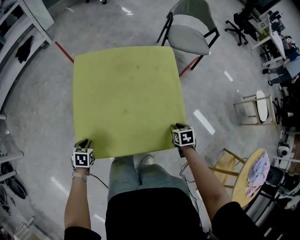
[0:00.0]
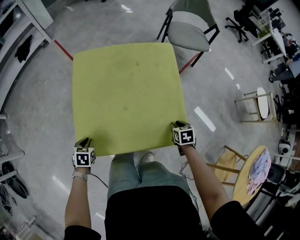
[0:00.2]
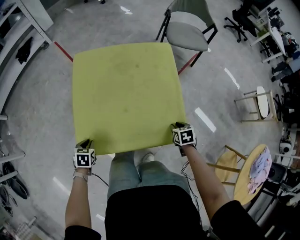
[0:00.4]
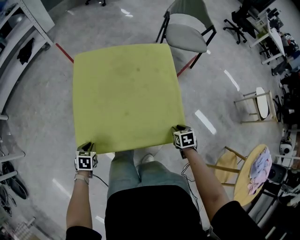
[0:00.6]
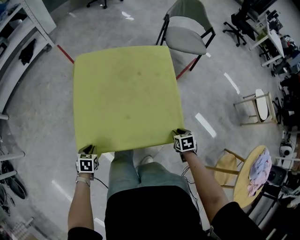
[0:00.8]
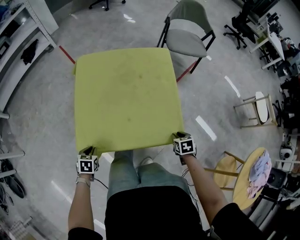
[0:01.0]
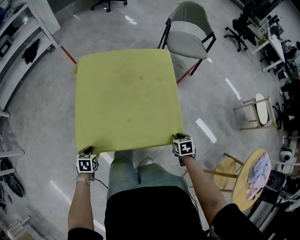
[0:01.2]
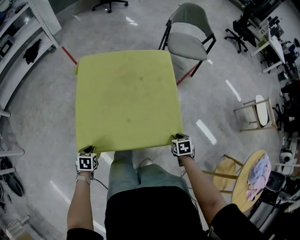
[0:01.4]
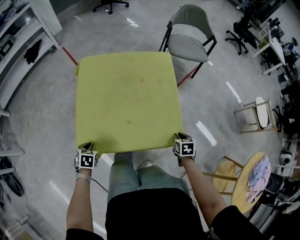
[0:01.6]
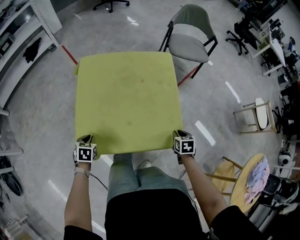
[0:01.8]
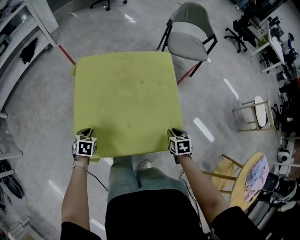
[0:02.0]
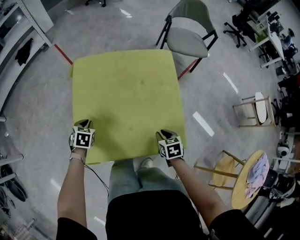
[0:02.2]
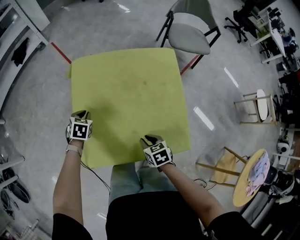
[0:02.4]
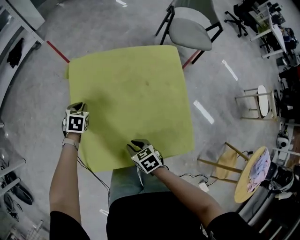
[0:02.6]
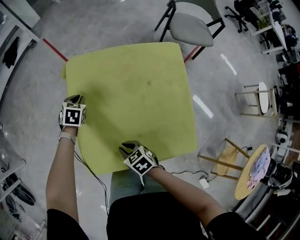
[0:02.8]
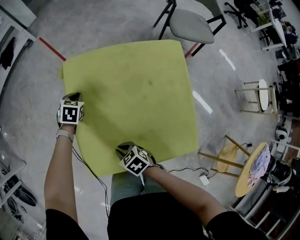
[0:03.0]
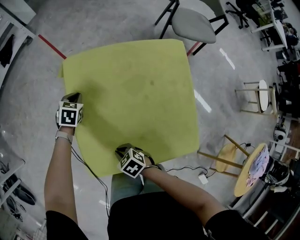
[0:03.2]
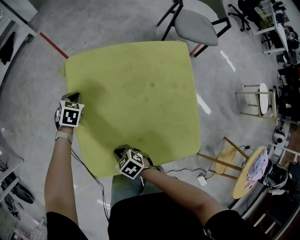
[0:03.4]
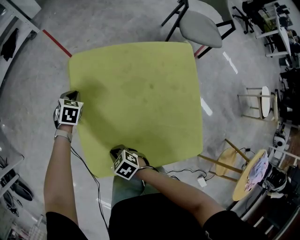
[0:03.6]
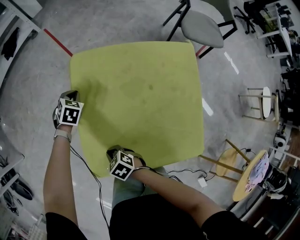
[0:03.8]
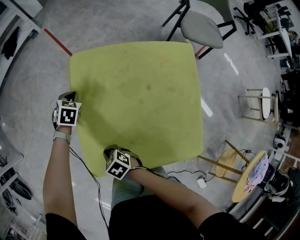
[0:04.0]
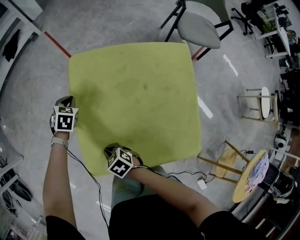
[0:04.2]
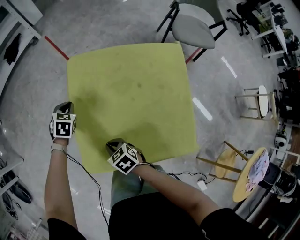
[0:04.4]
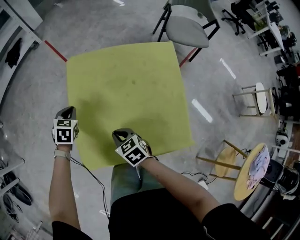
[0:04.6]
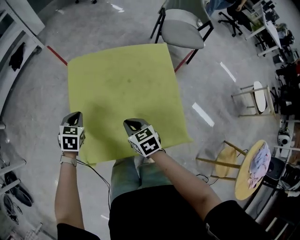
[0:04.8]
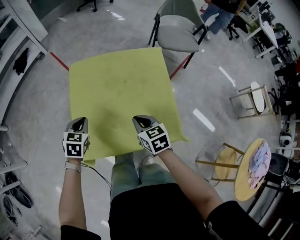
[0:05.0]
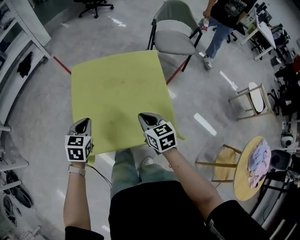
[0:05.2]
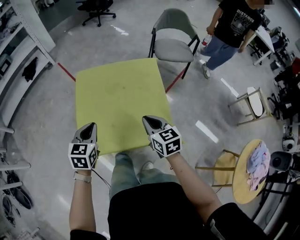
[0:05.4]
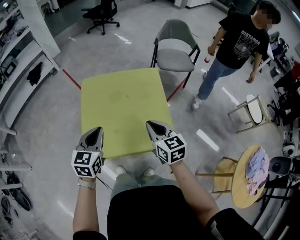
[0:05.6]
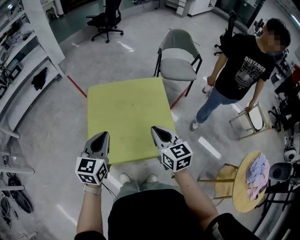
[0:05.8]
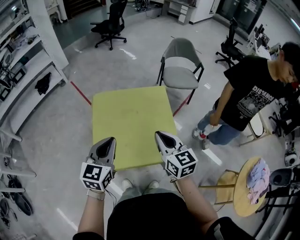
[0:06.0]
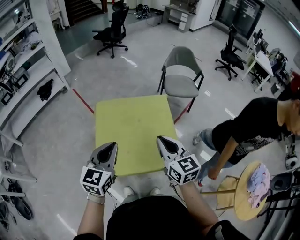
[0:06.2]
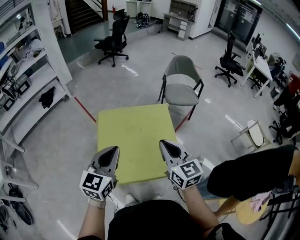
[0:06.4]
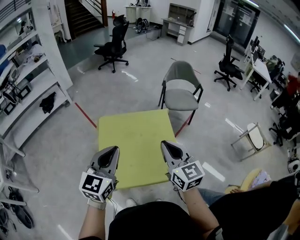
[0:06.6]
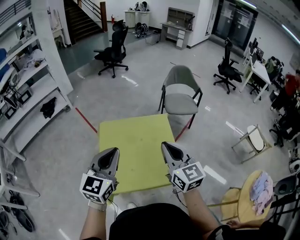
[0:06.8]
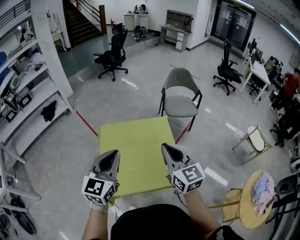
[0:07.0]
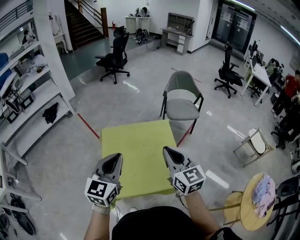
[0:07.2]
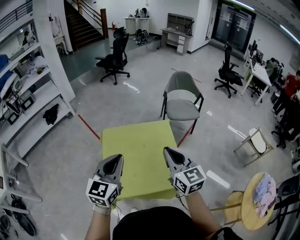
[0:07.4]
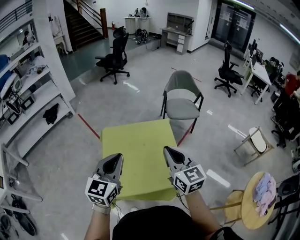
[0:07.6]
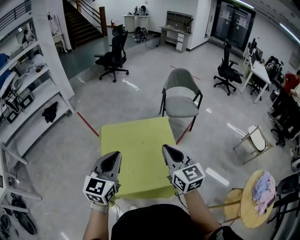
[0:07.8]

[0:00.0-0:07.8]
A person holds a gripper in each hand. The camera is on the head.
0:00.0 to 0:01.6: The left gripper moves about 5 cm; the right gripper is displaced backward by about 5 cm.
0:01.6 to 0:03.2: The right gripper ends up about 40 cm from where it was, and changes its angle by approximately 50 degrees. The left gripper ends up about 35 cm from where it was.
0:03.2 to 0:04.6: The right gripper shifts roughly 10 cm to the right and upward, and turns by roughly 20 degrees; the left gripper heads backward, upward and to the left, covering some 10 cm.
0:04.6 to 0:06.2: The left gripper is displaced upward, backward and to the right by some 40 cm, and tilts its fingers some 40 degrees upward; the right gripper is displaced upward and to the right by about 40 cm, and tilts its fingers some 30 degrees upward.
0:06.2 to 0:07.8: Both grippers move upward, approximately 5 cm.

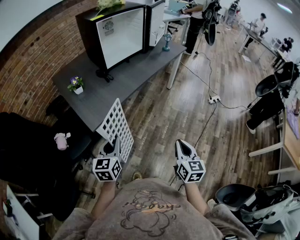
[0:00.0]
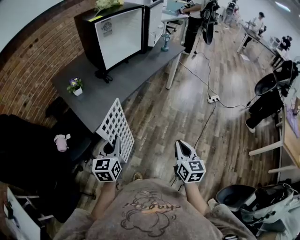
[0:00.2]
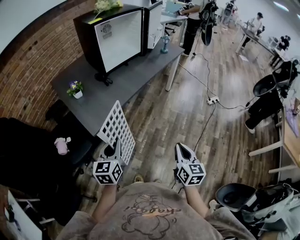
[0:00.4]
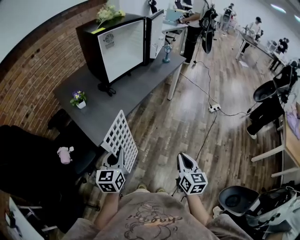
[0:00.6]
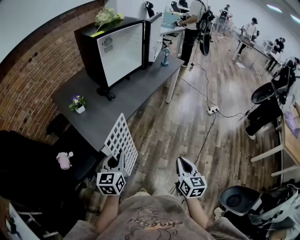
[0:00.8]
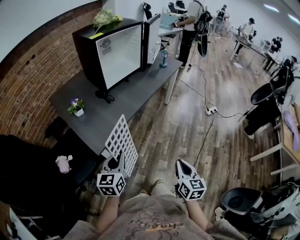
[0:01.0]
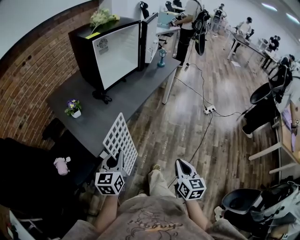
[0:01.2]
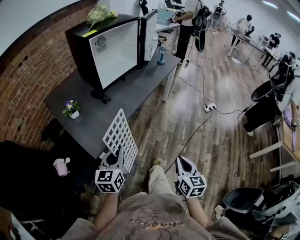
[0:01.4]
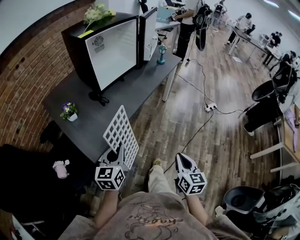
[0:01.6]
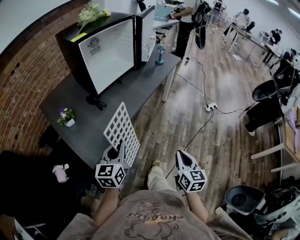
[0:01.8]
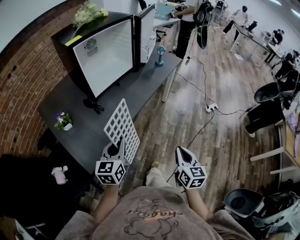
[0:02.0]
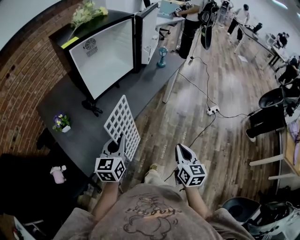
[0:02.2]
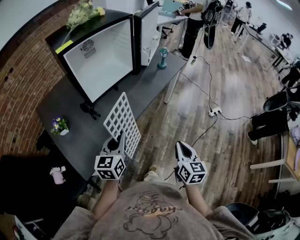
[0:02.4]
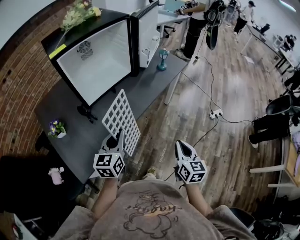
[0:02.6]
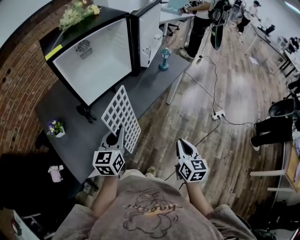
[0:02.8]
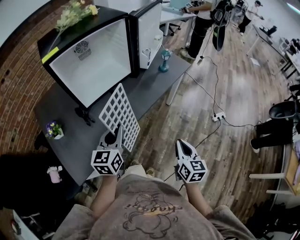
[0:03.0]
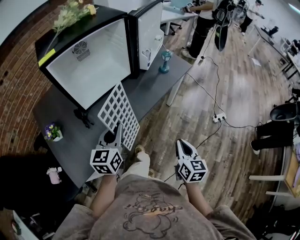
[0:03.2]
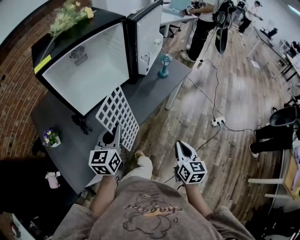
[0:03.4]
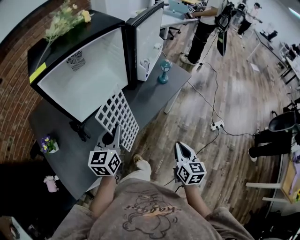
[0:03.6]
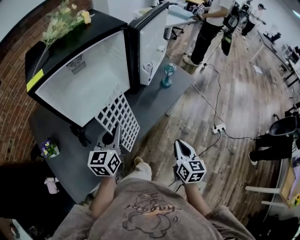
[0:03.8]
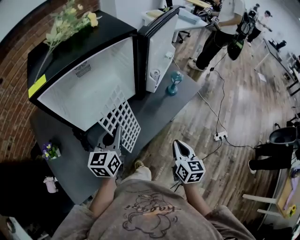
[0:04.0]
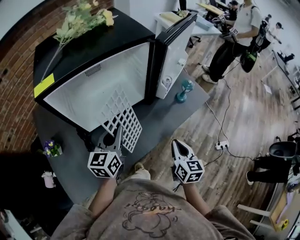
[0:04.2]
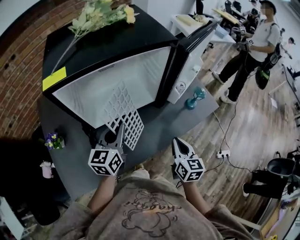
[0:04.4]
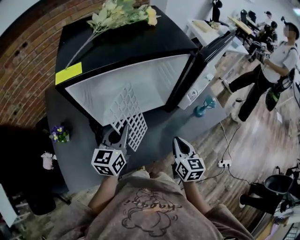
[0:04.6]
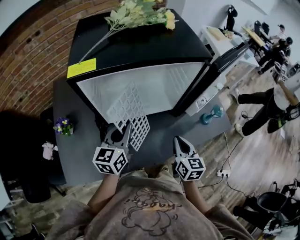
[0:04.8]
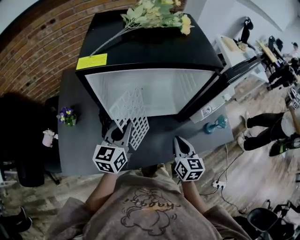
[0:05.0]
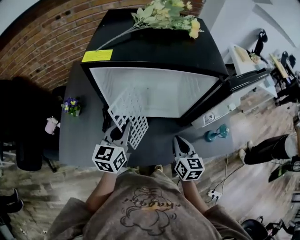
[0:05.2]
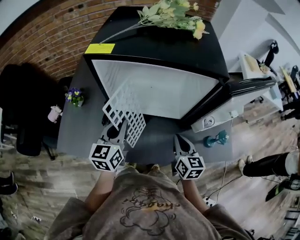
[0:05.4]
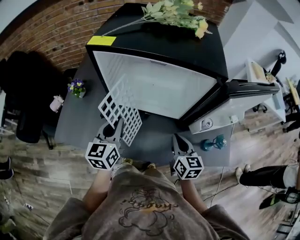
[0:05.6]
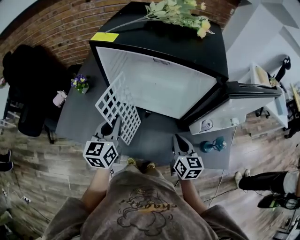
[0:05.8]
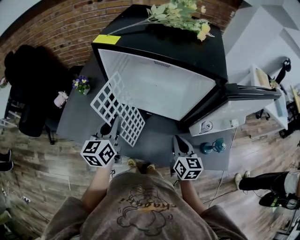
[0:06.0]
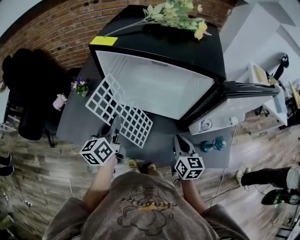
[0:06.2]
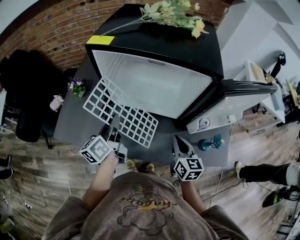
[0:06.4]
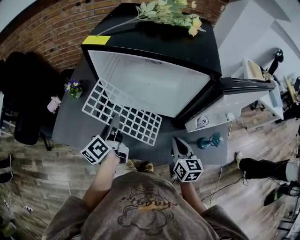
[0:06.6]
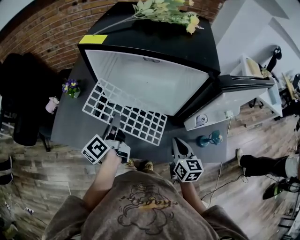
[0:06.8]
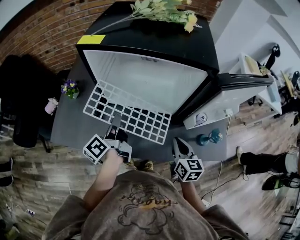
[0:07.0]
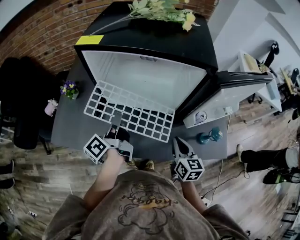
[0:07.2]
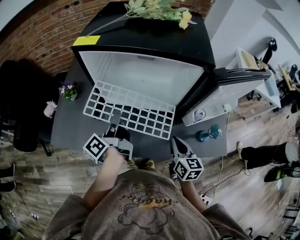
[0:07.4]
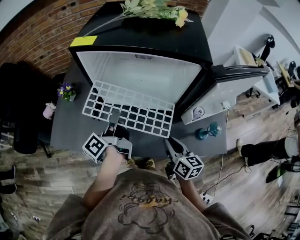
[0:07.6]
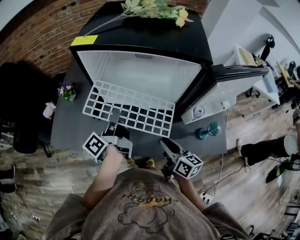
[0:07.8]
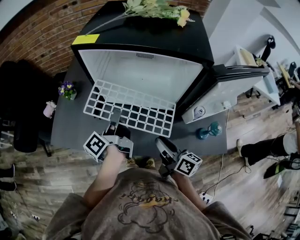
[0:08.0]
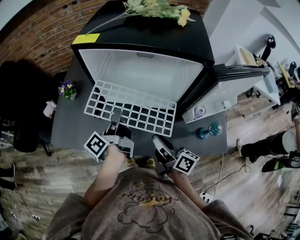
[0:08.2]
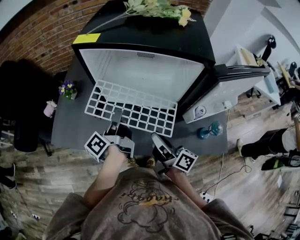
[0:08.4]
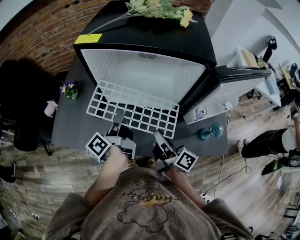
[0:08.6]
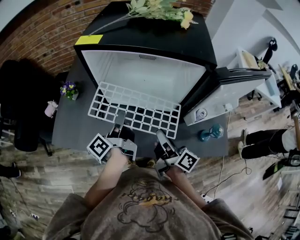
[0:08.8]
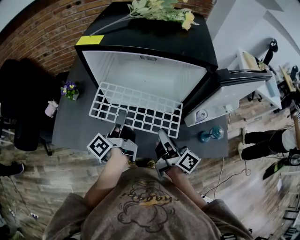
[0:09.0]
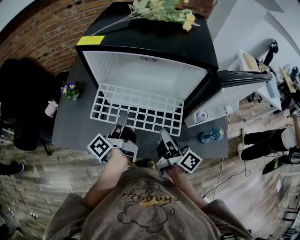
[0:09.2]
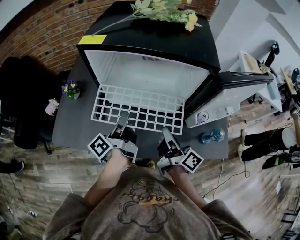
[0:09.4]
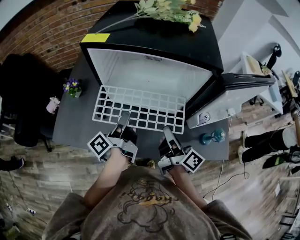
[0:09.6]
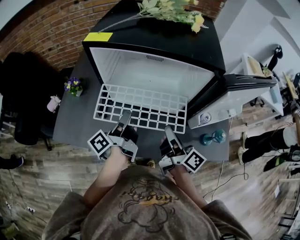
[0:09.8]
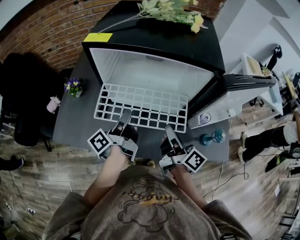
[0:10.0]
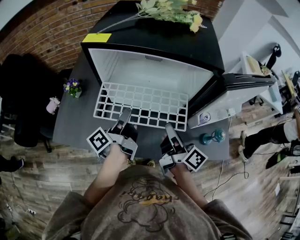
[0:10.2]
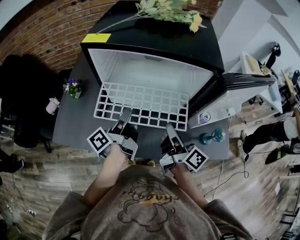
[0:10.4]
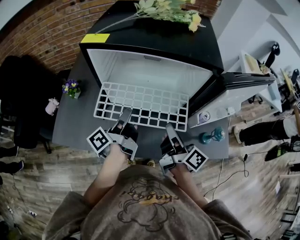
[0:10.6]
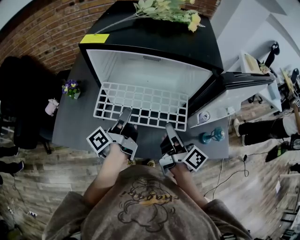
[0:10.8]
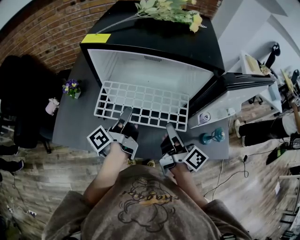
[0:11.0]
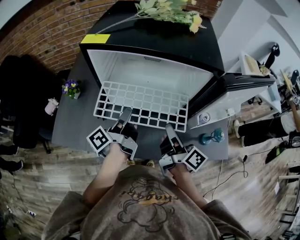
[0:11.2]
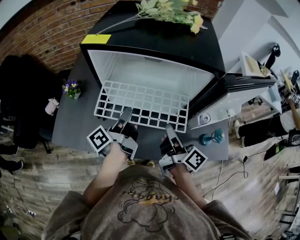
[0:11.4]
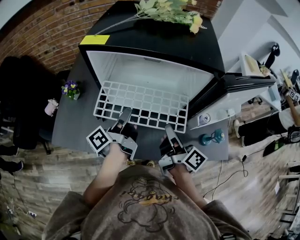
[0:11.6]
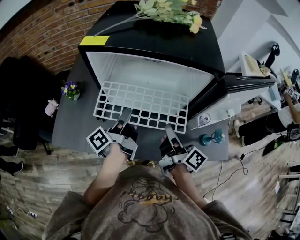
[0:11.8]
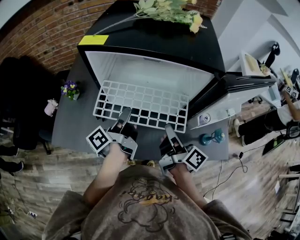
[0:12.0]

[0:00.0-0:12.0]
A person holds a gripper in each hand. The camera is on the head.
0:00.0 to 0:01.6: The right gripper shifts roughly 10 cm forward; the left gripper travels forward by roughly 15 cm.
0:01.6 to 0:03.0: The two grippers go some 30 cm forward.
0:03.0 to 0:04.4: The grippers both shift forward by roughly 25 cm.
0:04.4 to 0:06.0: The left gripper shifts by some 10 cm, and rotates approximately 40 degrees, while the right gripper moves about 10 cm, and rotates about 40 degrees.
0:06.0 to 0:07.6: The left gripper rolls counterclockwise, seen from behind, by about 60 degrees.
0:07.6 to 0:09.0: The right gripper shifts roughly 5 cm upward, and changes its angle by roughly 40 degrees.
0:09.0 to 0:10.4: The grippers stay close to where they were, moving slightly.
0:10.4 to 0:12.0: Both grippers stay put.

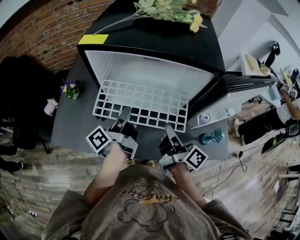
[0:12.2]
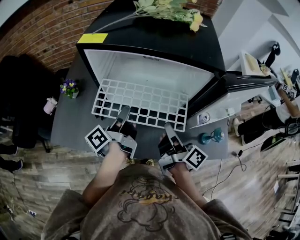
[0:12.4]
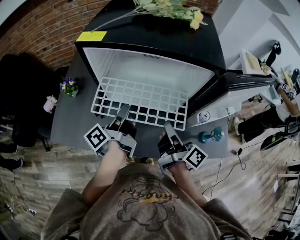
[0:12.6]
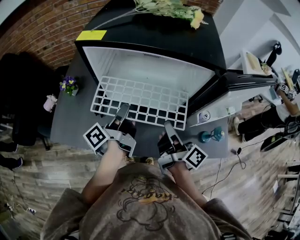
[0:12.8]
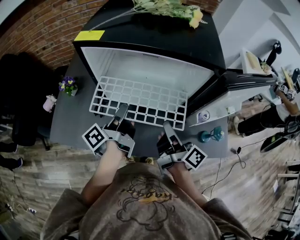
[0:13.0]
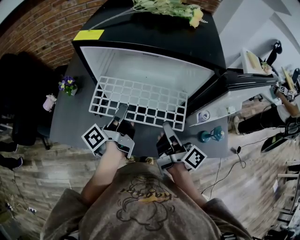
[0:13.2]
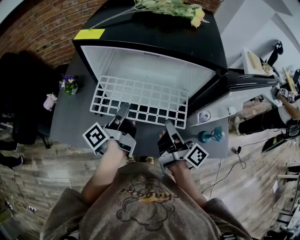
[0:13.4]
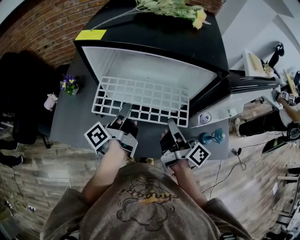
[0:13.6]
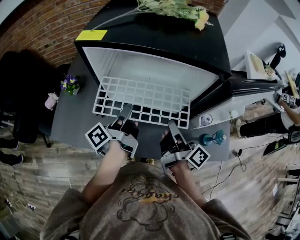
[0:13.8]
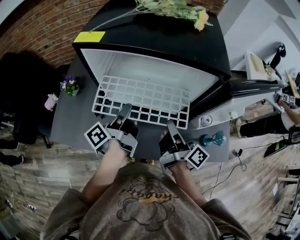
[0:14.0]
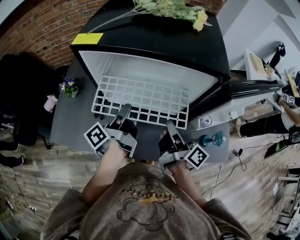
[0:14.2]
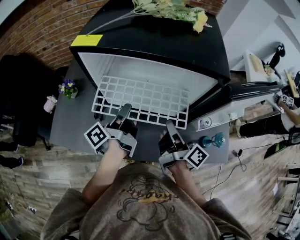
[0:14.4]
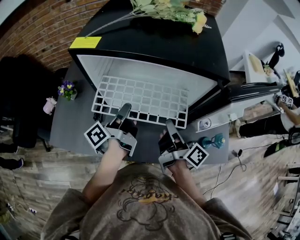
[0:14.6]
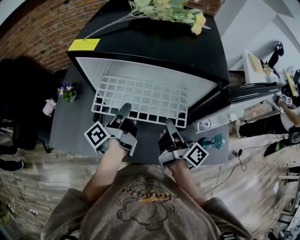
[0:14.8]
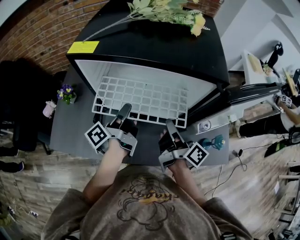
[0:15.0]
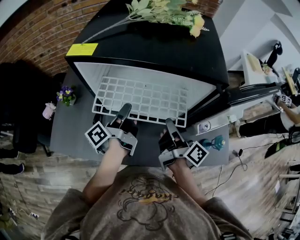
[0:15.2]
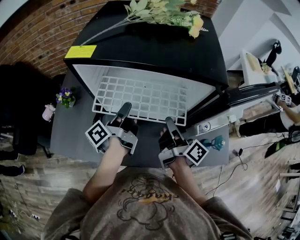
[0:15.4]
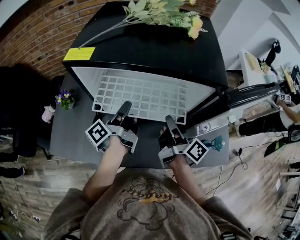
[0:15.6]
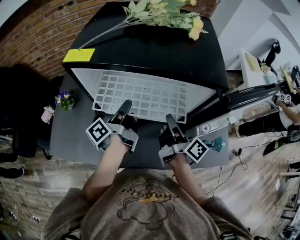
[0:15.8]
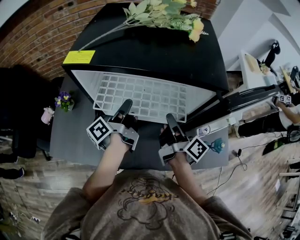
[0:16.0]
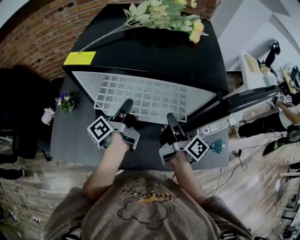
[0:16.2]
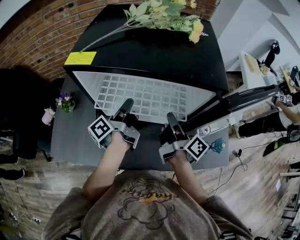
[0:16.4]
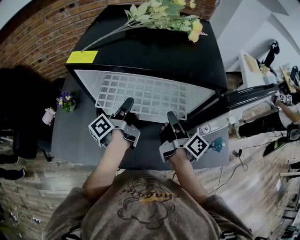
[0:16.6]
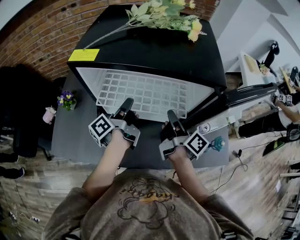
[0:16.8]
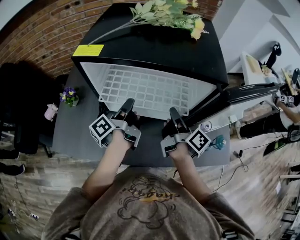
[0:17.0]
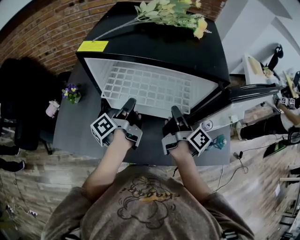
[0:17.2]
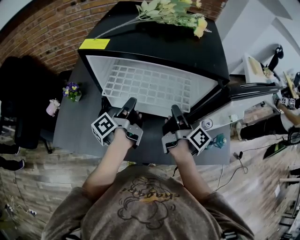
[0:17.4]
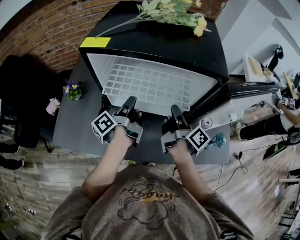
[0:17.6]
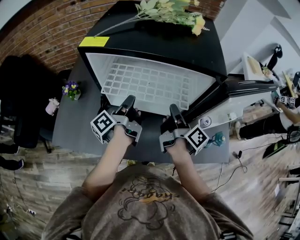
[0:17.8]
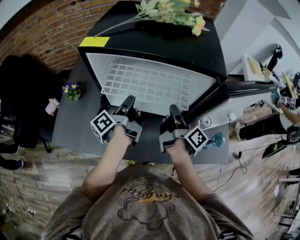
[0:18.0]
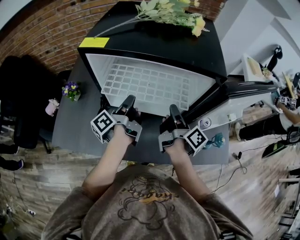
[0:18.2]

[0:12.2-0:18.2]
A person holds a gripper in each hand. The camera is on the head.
0:12.2 to 0:15.2: There are only small adjustments of the grippers.
0:15.2 to 0:18.2: There are only small adjustments of the grippers.
